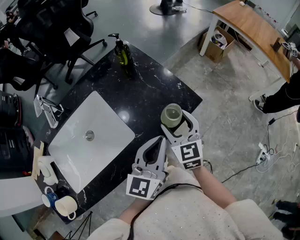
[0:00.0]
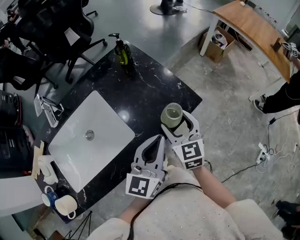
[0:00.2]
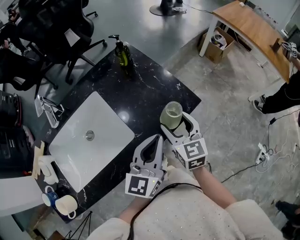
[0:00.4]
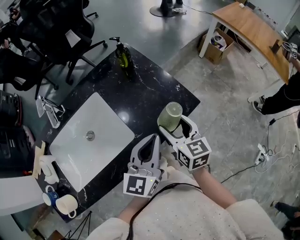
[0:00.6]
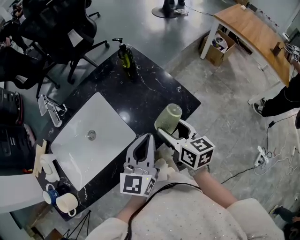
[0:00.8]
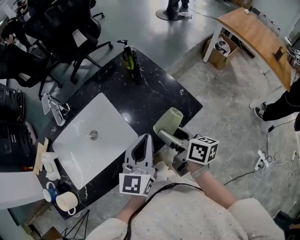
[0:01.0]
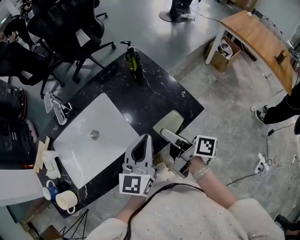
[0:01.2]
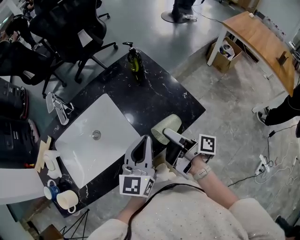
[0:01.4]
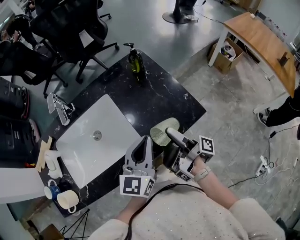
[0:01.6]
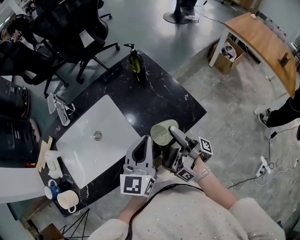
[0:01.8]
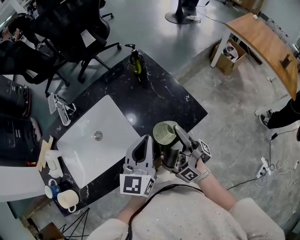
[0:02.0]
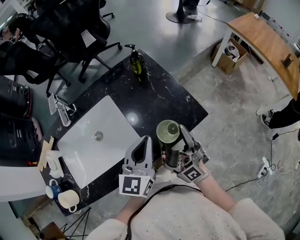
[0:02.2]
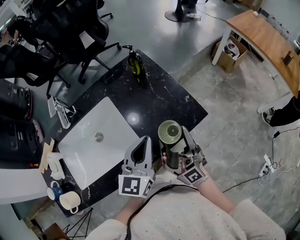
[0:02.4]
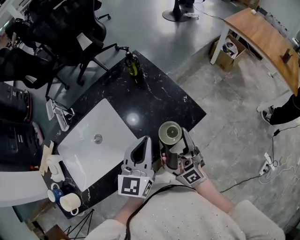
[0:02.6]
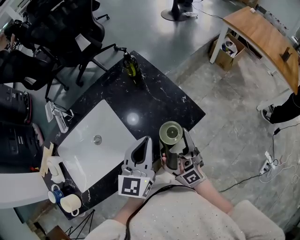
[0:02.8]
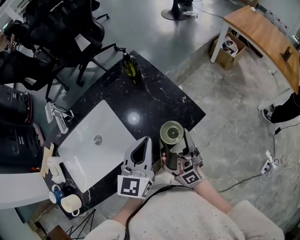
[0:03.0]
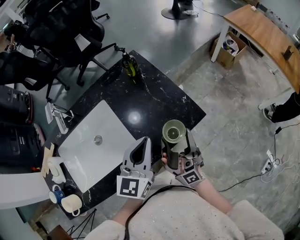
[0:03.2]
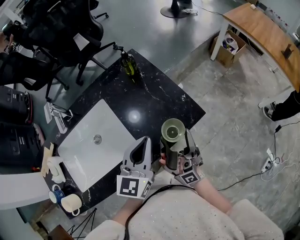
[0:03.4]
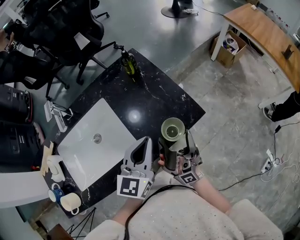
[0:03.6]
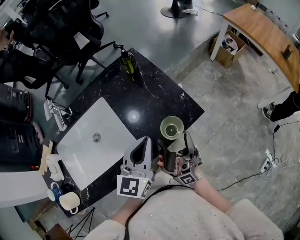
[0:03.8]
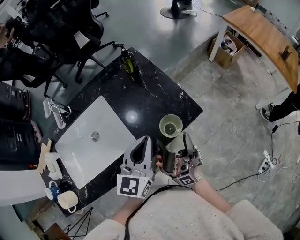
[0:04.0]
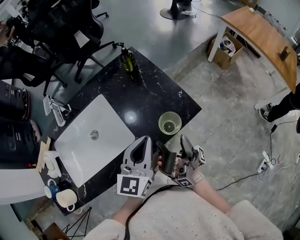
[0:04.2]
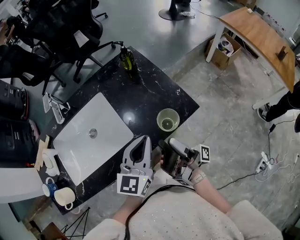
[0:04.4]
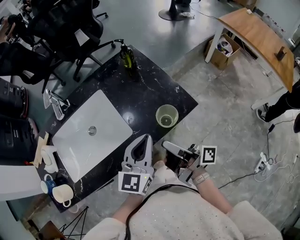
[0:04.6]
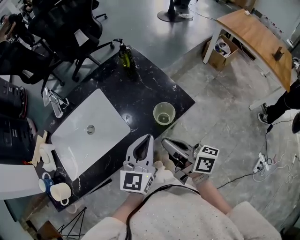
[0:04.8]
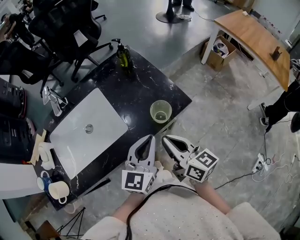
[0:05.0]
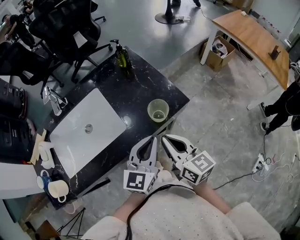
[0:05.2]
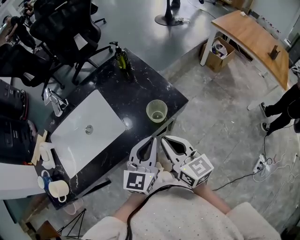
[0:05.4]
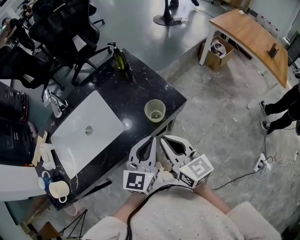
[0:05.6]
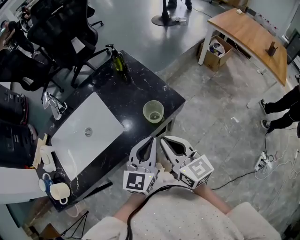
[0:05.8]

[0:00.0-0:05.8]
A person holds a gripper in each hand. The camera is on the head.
0:00.0 to 0:01.4: The left gripper changes place by about 5 cm.
0:04.4 to 0:05.8: The left gripper ends up roughly 10 cm from where it was.

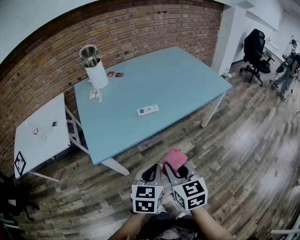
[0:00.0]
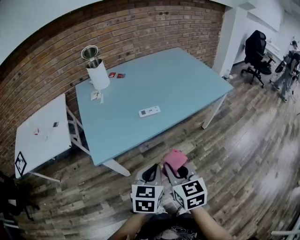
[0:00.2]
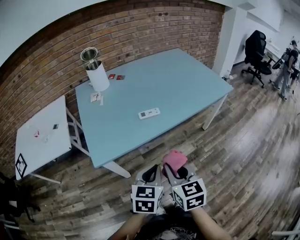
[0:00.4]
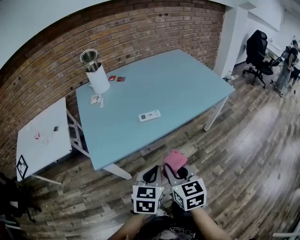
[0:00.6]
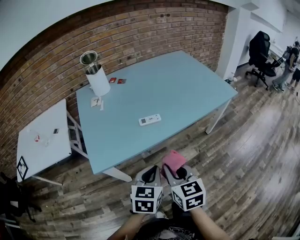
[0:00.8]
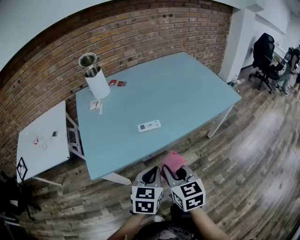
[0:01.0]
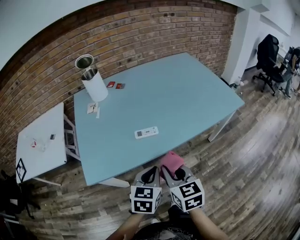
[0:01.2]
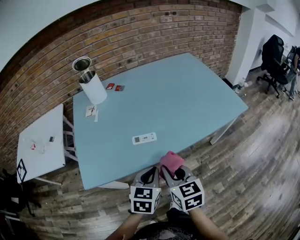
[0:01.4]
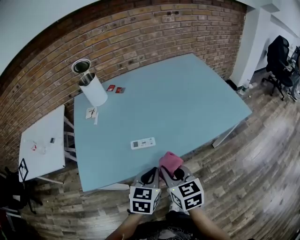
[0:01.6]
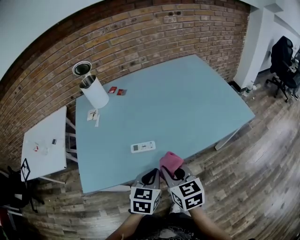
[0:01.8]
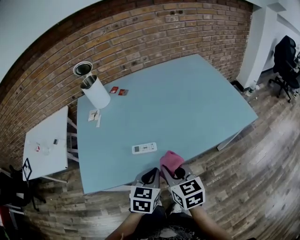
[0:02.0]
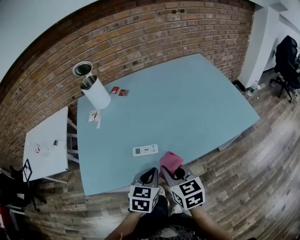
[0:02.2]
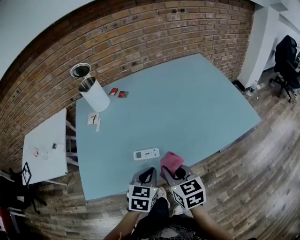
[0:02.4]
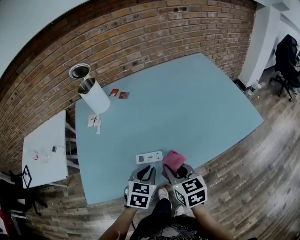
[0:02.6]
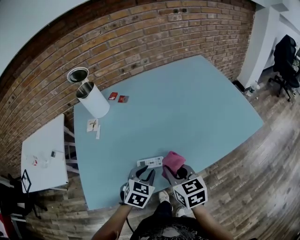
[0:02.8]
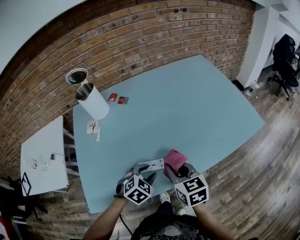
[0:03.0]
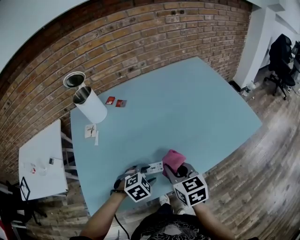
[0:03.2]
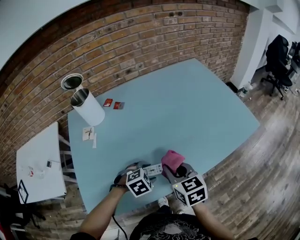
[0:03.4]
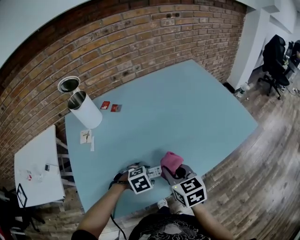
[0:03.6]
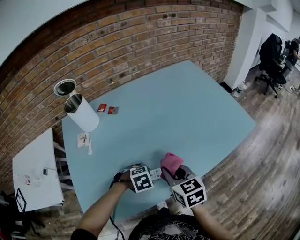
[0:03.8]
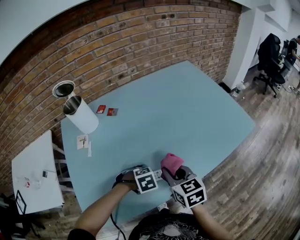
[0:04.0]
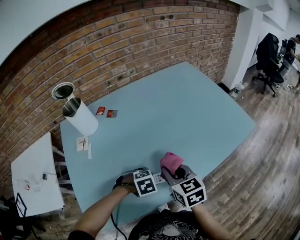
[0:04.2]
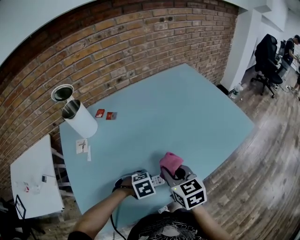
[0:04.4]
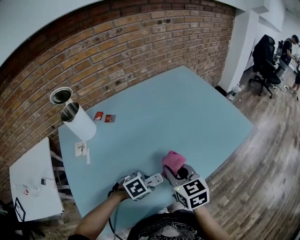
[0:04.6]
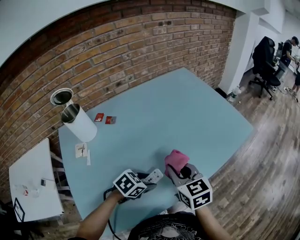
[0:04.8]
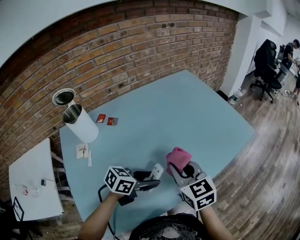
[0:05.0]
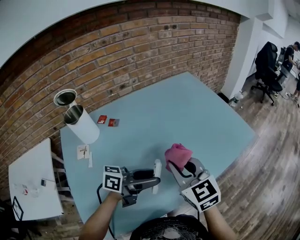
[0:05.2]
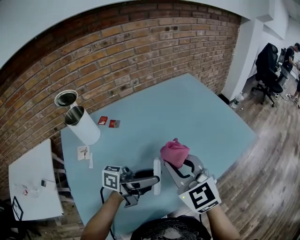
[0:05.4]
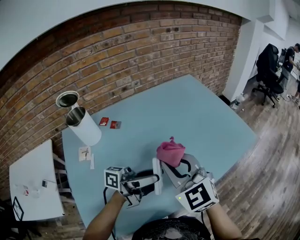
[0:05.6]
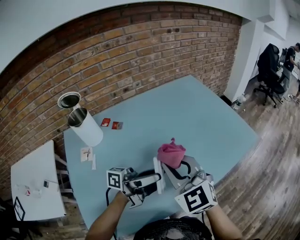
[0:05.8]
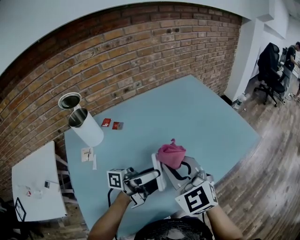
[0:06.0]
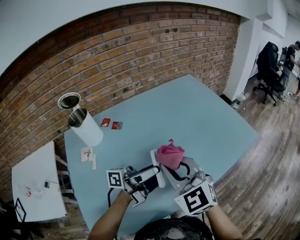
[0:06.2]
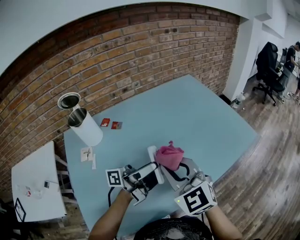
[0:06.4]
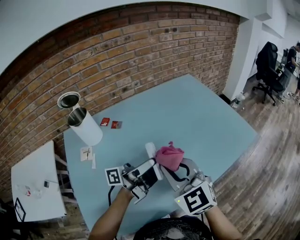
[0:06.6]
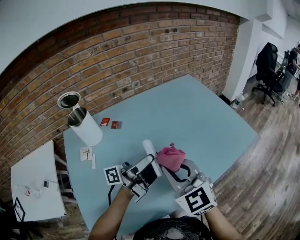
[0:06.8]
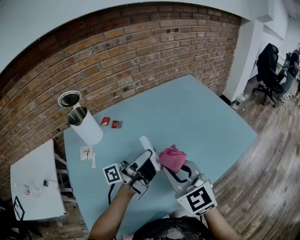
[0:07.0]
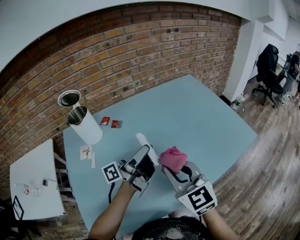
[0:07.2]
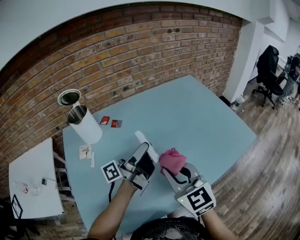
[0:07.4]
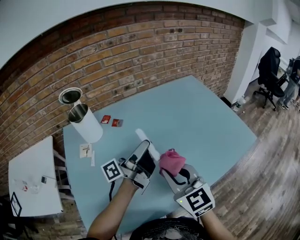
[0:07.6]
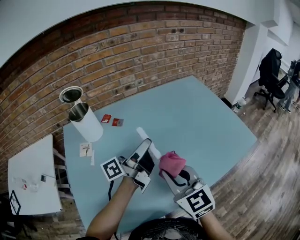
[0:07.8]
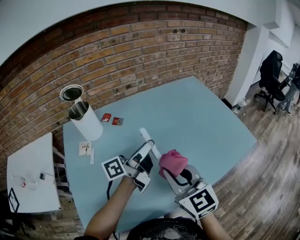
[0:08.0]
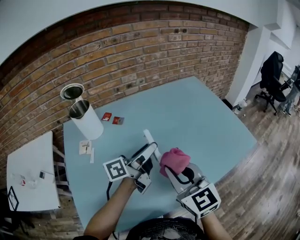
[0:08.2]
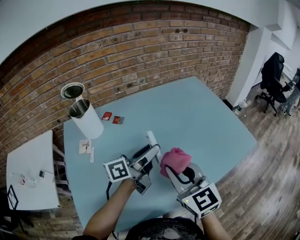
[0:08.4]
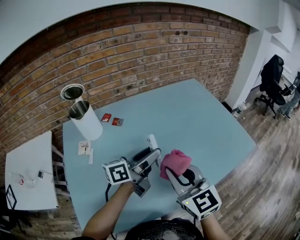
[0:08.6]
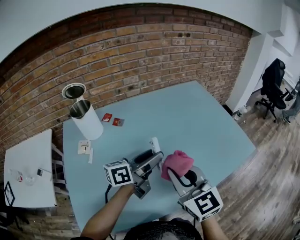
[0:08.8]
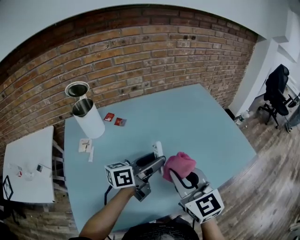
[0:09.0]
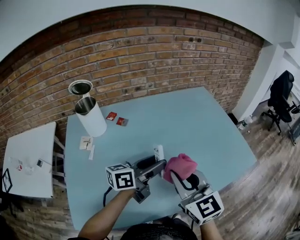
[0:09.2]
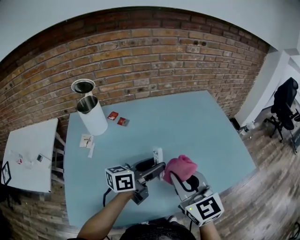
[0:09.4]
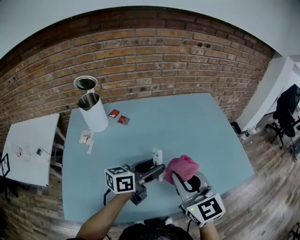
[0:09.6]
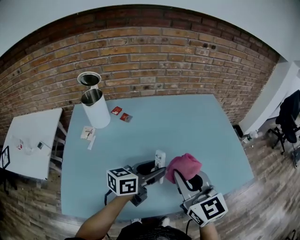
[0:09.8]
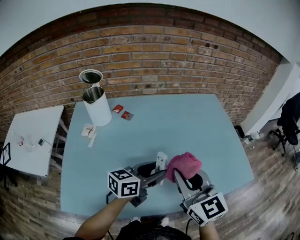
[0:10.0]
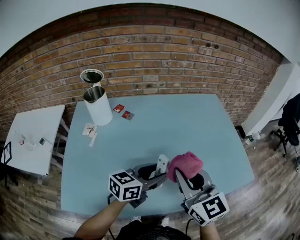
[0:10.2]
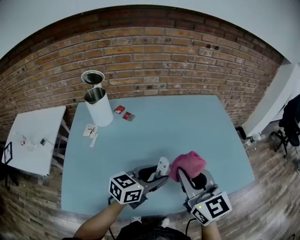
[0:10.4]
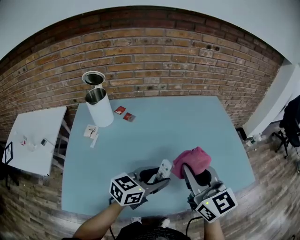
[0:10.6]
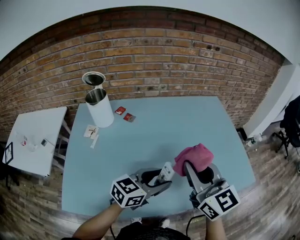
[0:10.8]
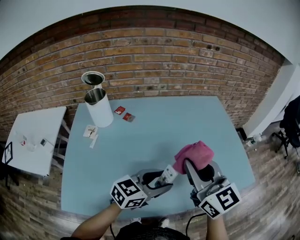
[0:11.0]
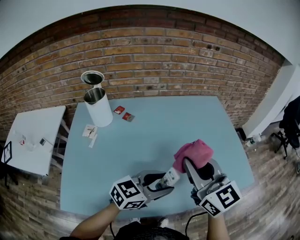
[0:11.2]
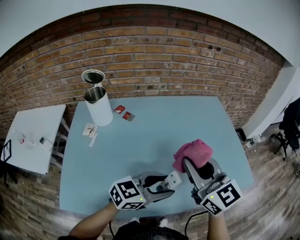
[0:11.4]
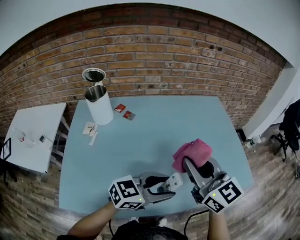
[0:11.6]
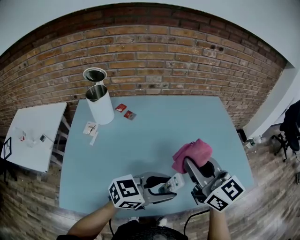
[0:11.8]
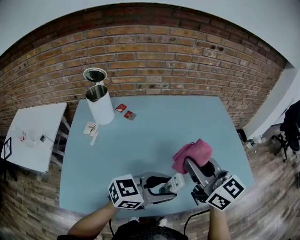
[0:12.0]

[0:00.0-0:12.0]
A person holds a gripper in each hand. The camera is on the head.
0:00.0 to 0:01.6: The two grippers go approximately 20 cm forward.
0:01.6 to 0:03.0: The right gripper heads forward, covering approximately 15 cm. Meanwhile the left gripper goes roughly 15 cm forward and downward, turns by about 40 degrees, and opens its fingers.
0:03.0 to 0:04.4: The left gripper shifts about 5 cm downward, and turns by some 40 degrees.
0:04.4 to 0:06.0: The right gripper travels upward by about 15 cm, and rotates about 40 degrees; the left gripper heads upward, covering some 25 cm, and tips its fingers upward by some 100 degrees.
0:06.0 to 0:07.6: The left gripper is displaced forward and to the left by some 10 cm, and turns by approximately 30 degrees.
0:07.6 to 0:09.0: The left gripper changes place by some 5 cm, and changes its angle by roughly 40 degrees.
0:09.0 to 0:10.4: The grippers both shift to the right by about 5 cm. The left gripper changes its angle by some 30 degrees.
0:10.4 to 0:12.0: The left gripper shifts some 5 cm to the right, and swivels approximately 20 degrees.

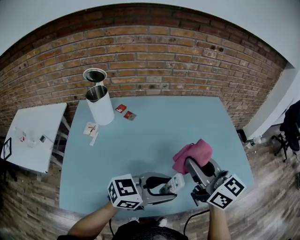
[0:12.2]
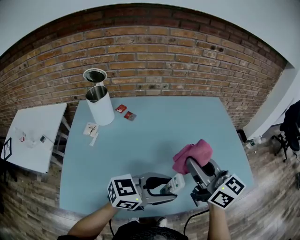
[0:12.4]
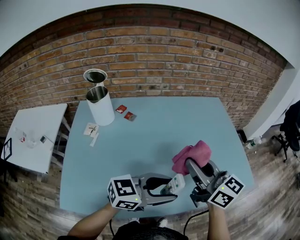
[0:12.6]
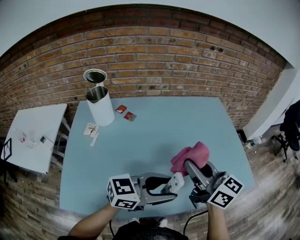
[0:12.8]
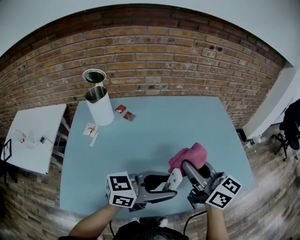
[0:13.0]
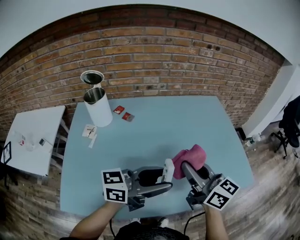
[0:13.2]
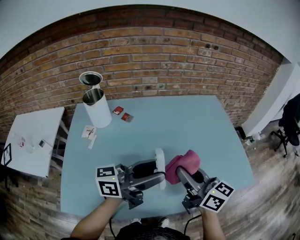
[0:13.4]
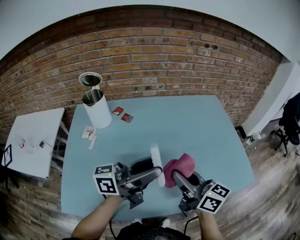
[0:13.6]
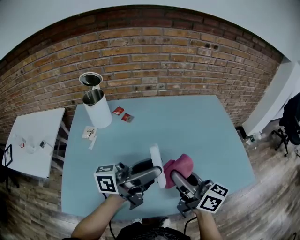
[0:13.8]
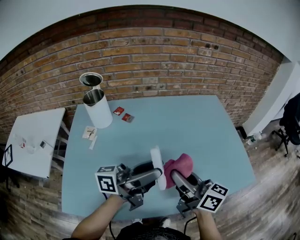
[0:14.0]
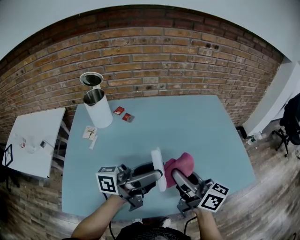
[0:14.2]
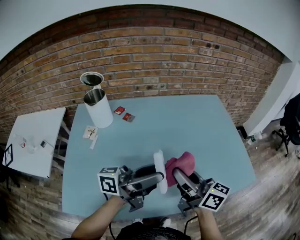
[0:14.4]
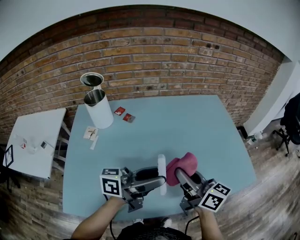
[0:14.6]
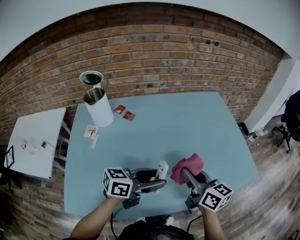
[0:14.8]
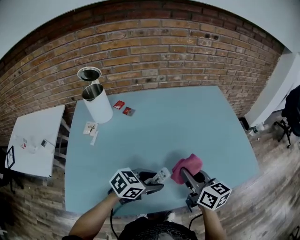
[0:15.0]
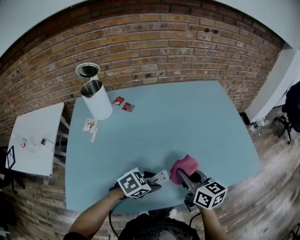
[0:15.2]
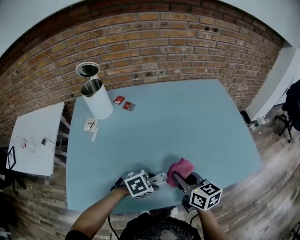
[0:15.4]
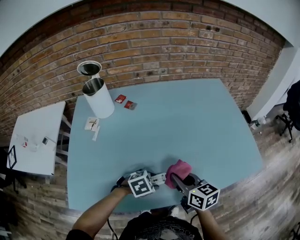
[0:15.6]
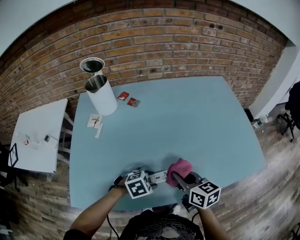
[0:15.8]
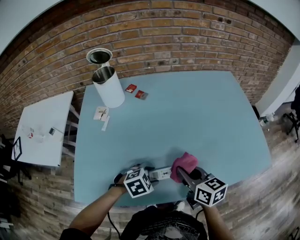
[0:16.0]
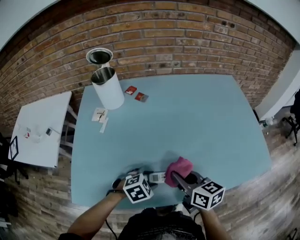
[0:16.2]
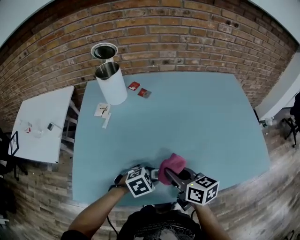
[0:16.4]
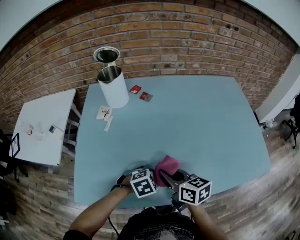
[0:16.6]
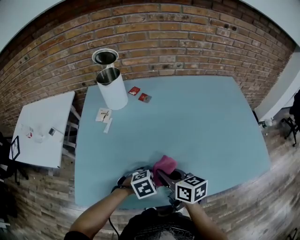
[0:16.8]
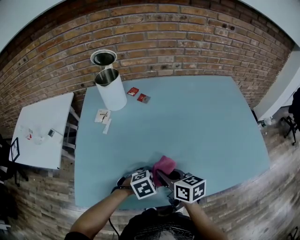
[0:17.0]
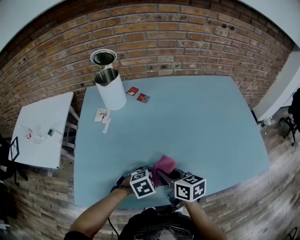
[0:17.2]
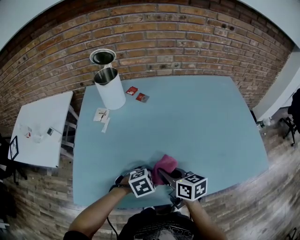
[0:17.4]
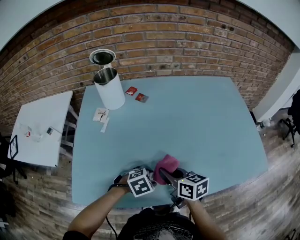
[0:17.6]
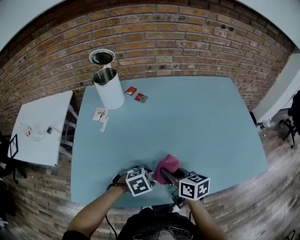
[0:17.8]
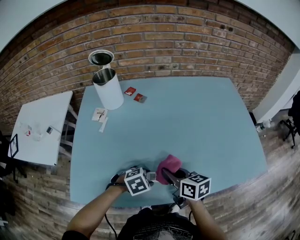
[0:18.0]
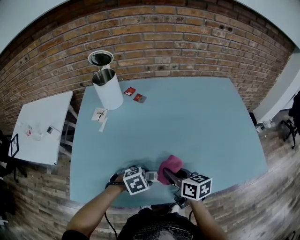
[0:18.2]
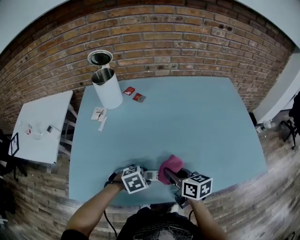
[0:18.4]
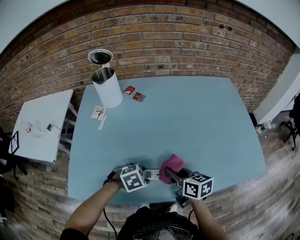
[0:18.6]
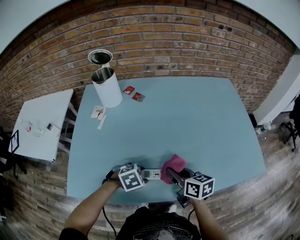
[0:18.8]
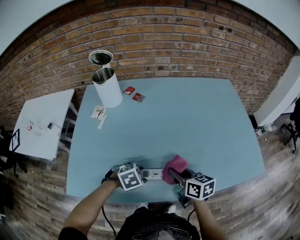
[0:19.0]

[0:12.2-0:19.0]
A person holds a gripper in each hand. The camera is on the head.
0:12.2 to 0:13.6: The left gripper heads to the left and upward, covering some 10 cm, and changes its angle by about 40 degrees; the right gripper goes roughly 5 cm downward.
0:13.6 to 0:15.0: The left gripper heads downward, covering about 20 cm, and angles its fingers downward, by roughly 60 degrees. The right gripper is displaced downward by some 10 cm.
0:15.0 to 0:16.2: The left gripper shifts roughly 15 cm downward, to the left and backward, and changes its angle by approximately 40 degrees. Meanwhile the right gripper shifts some 15 cm to the left, downward and backward.
0:16.2 to 0:17.6: The right gripper moves approximately 5 cm.
0:17.6 to 0:19.0: The right gripper goes about 10 cm to the right.
